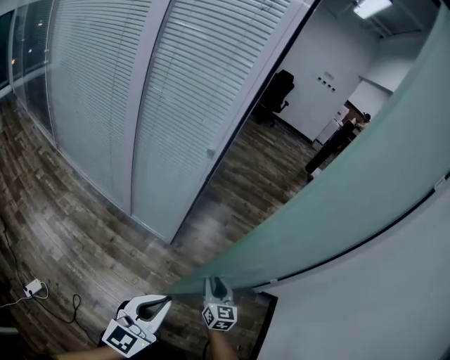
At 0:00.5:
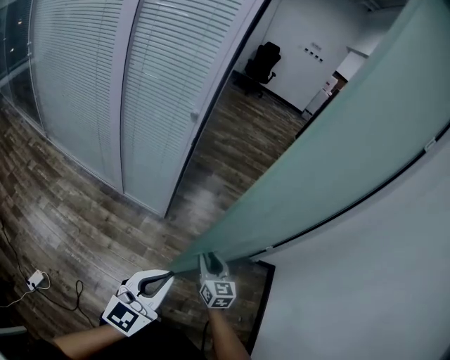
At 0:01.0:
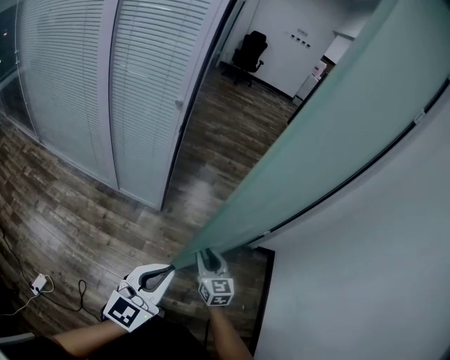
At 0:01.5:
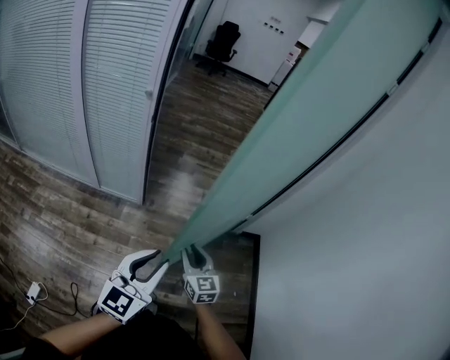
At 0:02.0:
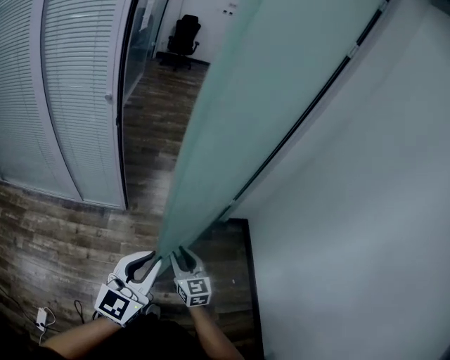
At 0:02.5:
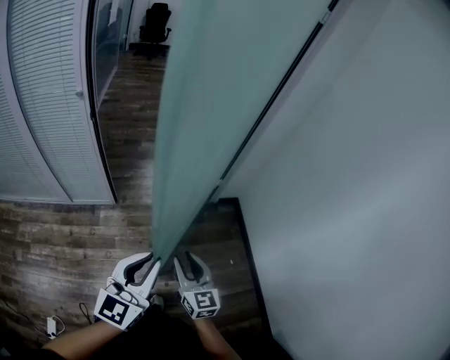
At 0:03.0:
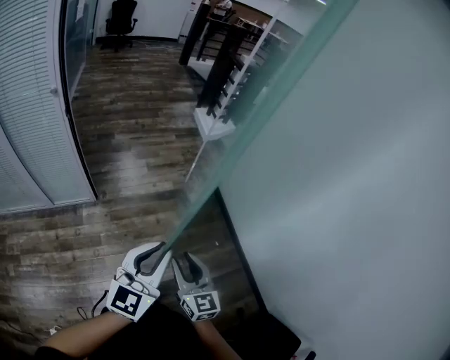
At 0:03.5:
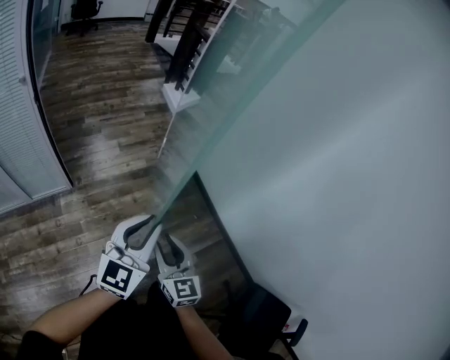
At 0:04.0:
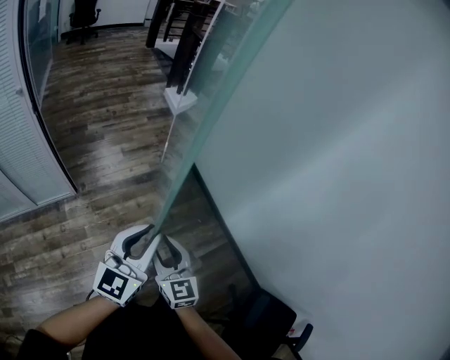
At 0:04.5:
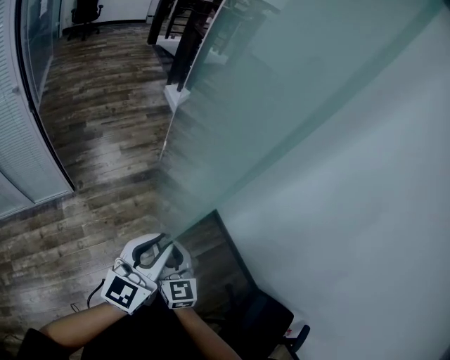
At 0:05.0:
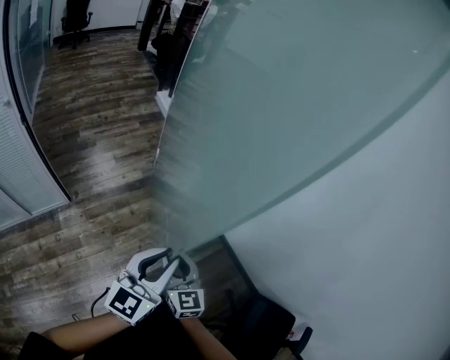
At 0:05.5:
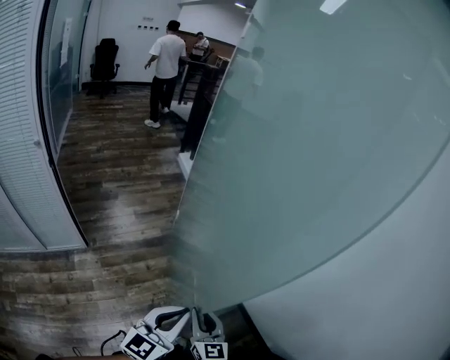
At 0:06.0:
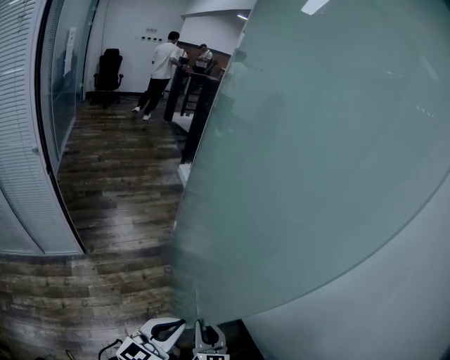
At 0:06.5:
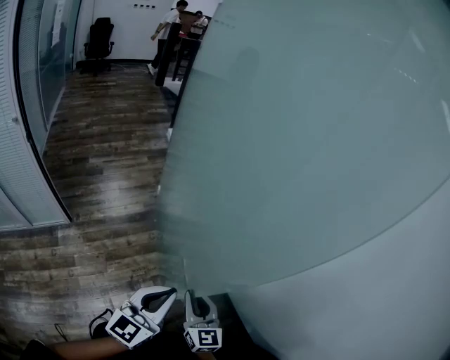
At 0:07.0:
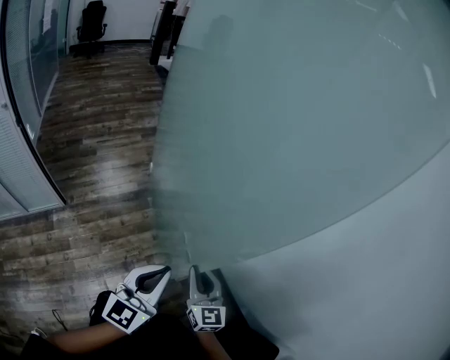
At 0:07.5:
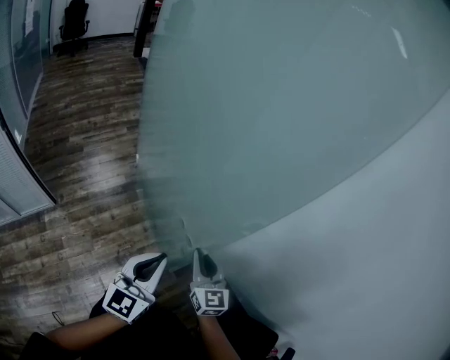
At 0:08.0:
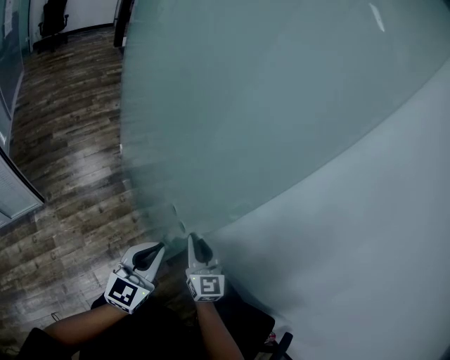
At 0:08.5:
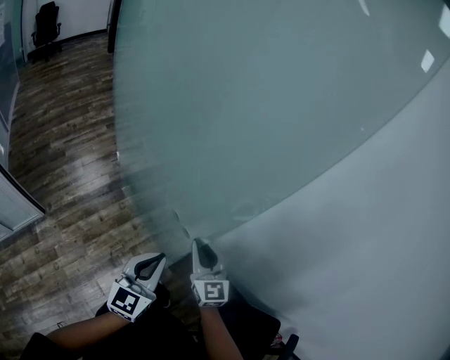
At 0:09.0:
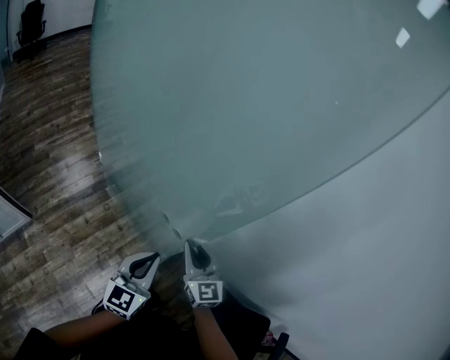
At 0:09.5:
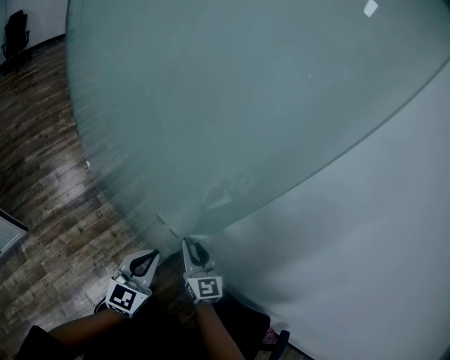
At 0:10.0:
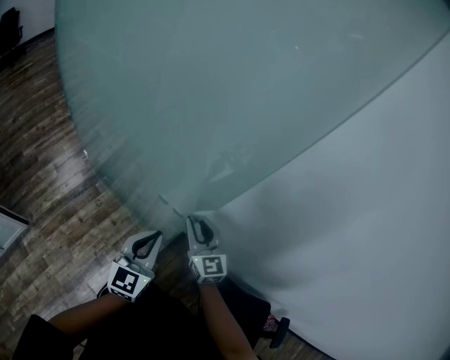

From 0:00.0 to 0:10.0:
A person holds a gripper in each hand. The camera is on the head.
From 0:00.0 to 0:02.0: The left gripper moves to the right, about 15 cm, and turns by about 20 degrees, while the right gripper travels backward and to the right by roughly 15 cm.
From 0:02.0 to 0:04.0: The right gripper ends up approximately 20 cm from where it was, and rotates roughly 30 degrees. Meanwhile the left gripper moves about 15 cm, and rotates approximately 30 degrees.
From 0:04.0 to 0:06.0: Both grippers move to the right, approximately 15 cm. The right gripper closes up.
From 0:06.0 to 0:08.0: Both grippers move to the right and forward, roughly 15 cm.
From 0:08.0 to 0:10.0: The two grippers go approximately 15 cm forward and to the right.

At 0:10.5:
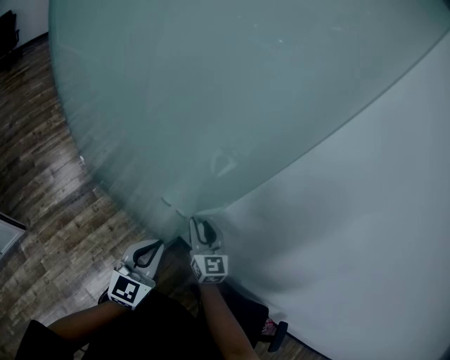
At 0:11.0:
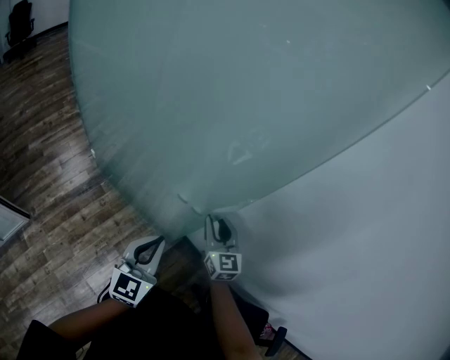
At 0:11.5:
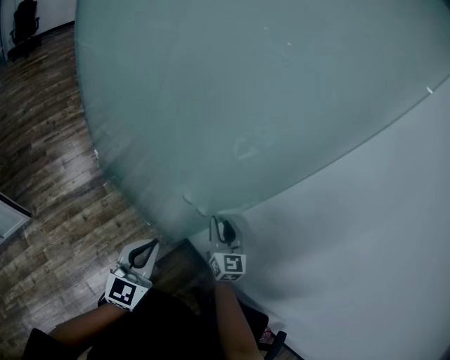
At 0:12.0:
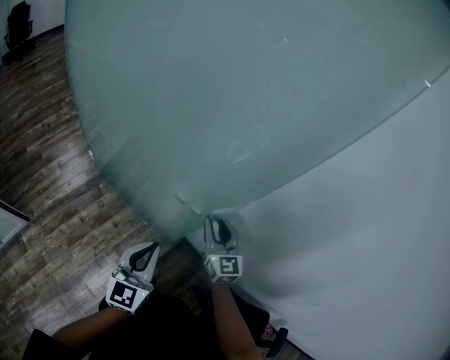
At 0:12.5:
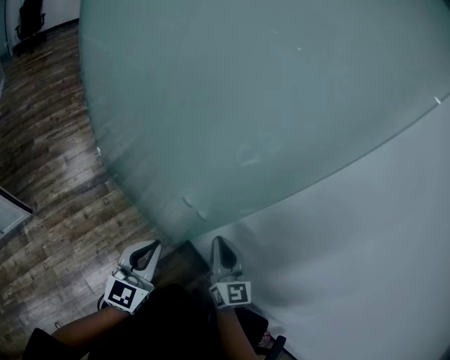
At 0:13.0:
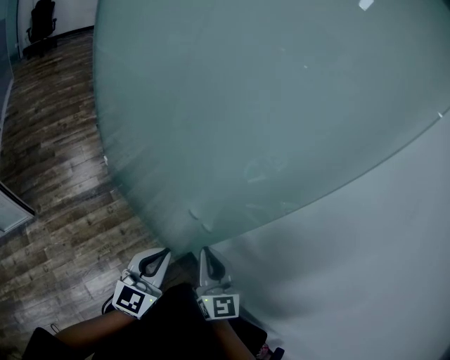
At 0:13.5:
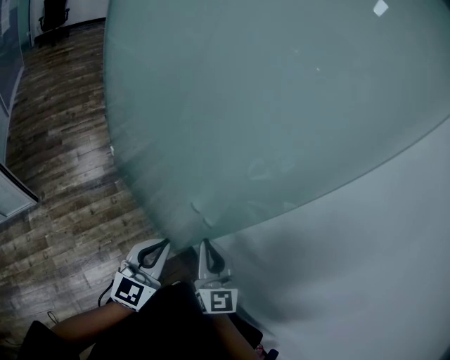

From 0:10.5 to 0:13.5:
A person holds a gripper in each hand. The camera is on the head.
From 0:10.5 to 0:12.0: The grippers make only small movements.
From 0:12.0 to 0:13.5: The right gripper goes about 15 cm upward, to the left and backward, and closes up.

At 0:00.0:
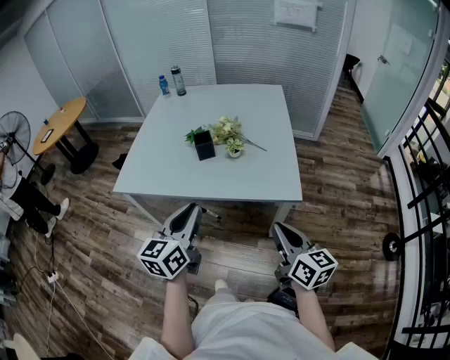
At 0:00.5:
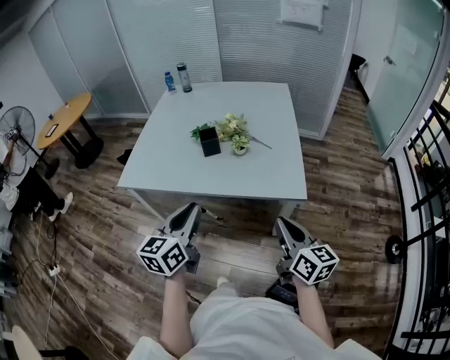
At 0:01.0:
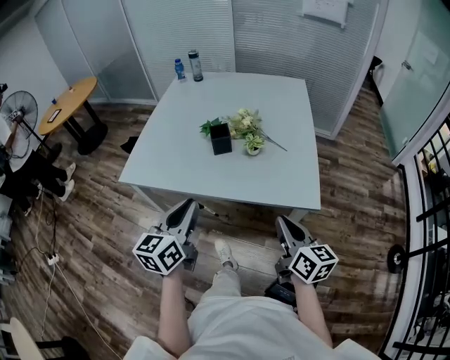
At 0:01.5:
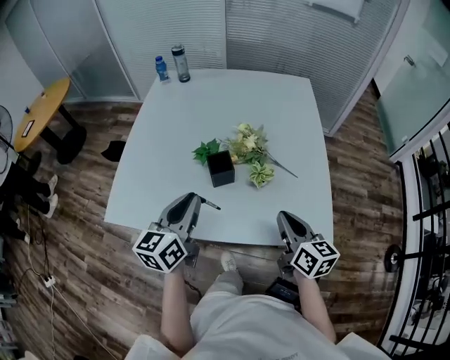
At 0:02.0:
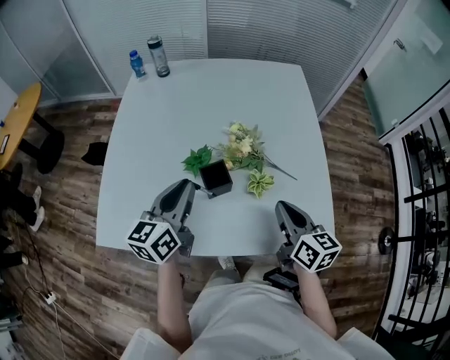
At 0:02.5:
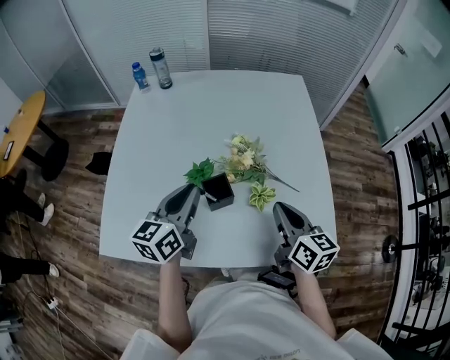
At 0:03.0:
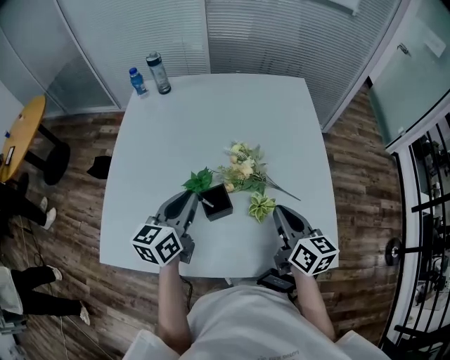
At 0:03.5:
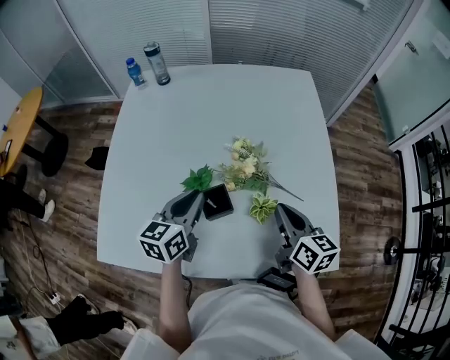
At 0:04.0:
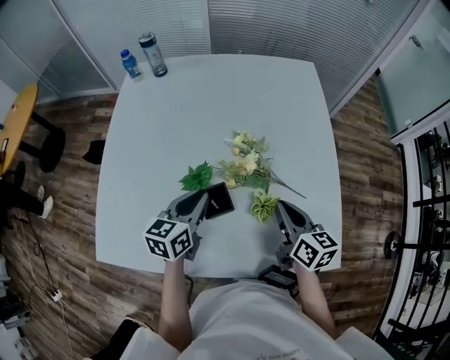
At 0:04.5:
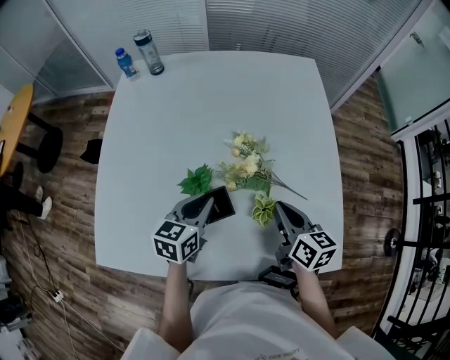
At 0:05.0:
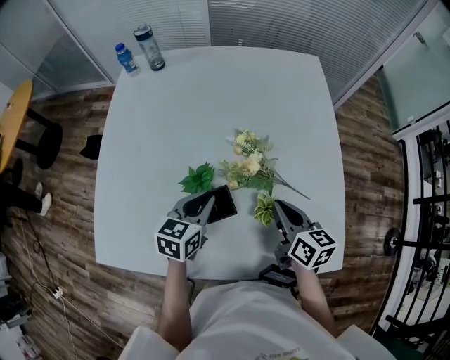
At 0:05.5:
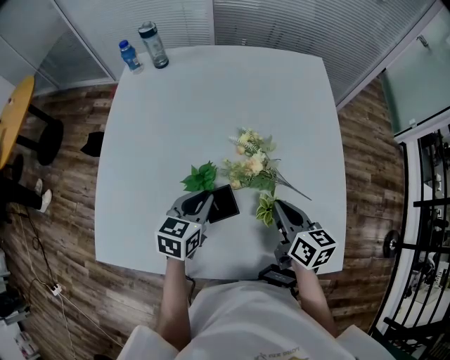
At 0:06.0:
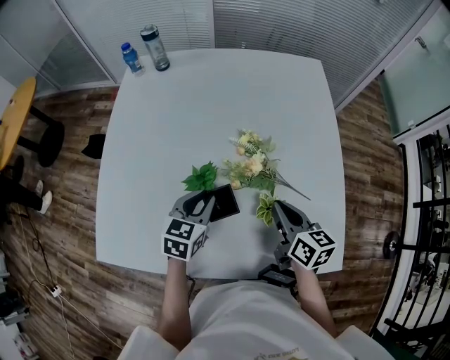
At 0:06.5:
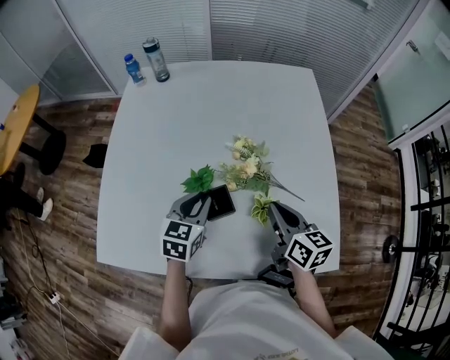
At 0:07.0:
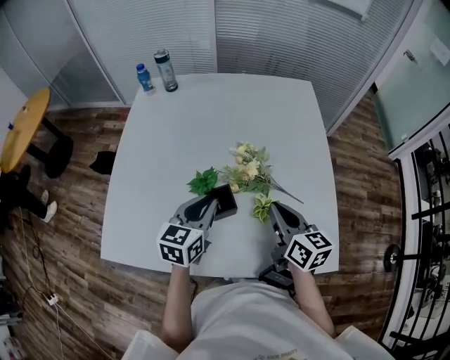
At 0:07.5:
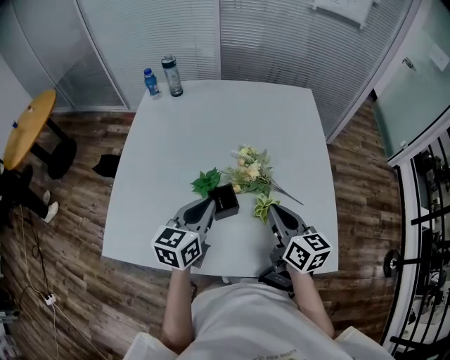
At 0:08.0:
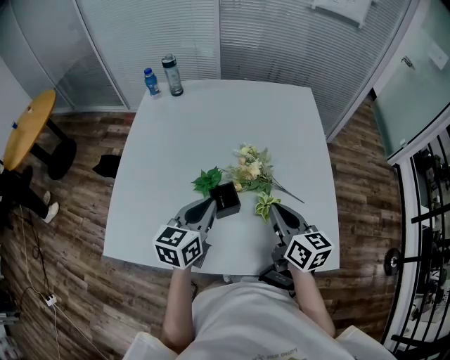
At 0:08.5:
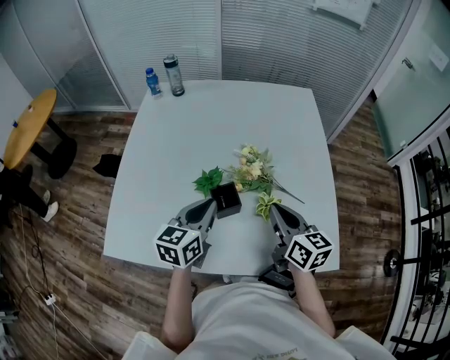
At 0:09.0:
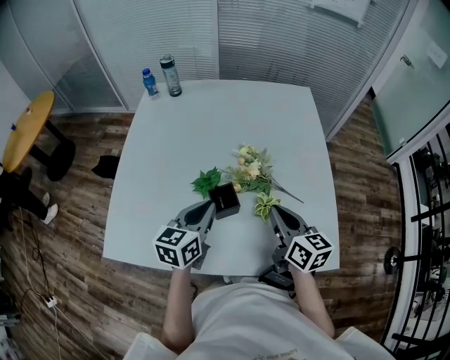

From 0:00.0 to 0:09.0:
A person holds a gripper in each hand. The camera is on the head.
From 0:00.0 to 0:02.0: The pair of grippers is taken forward, some 40 cm.
From 0:02.0 to 0:04.5: The left gripper travels downward and forward by approximately 15 cm, and turns by some 20 degrees; the right gripper moves forward and downward, roughly 15 cm.
From 0:04.5 to 0:07.0: The two grippers go about 5 cm upward.
From 0:07.0 to 0:09.0: The grippers move only a little.

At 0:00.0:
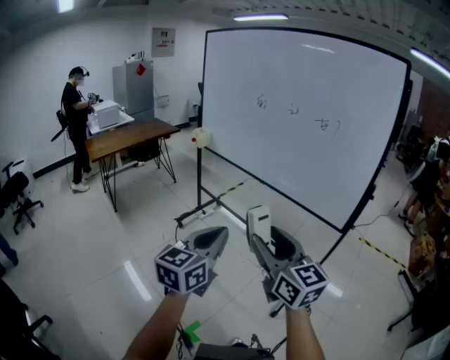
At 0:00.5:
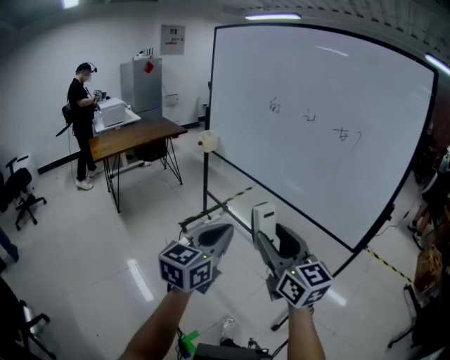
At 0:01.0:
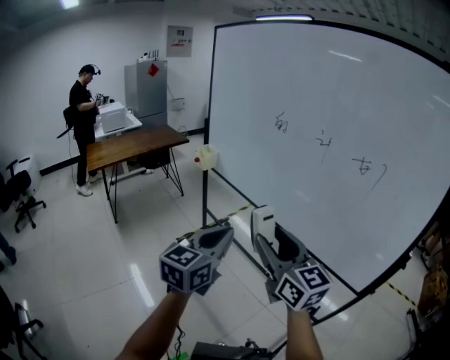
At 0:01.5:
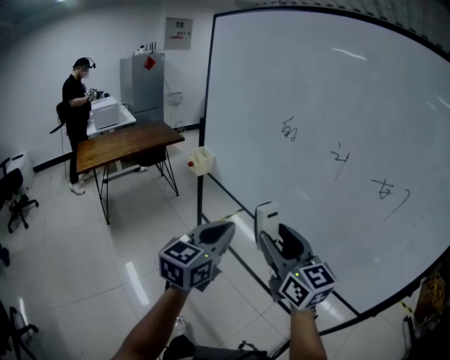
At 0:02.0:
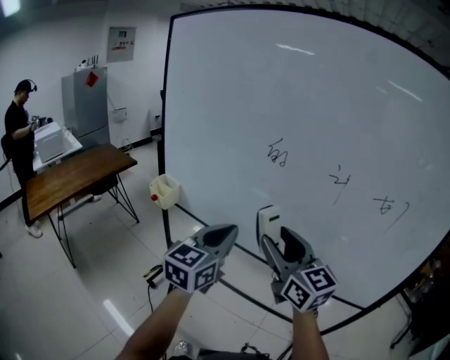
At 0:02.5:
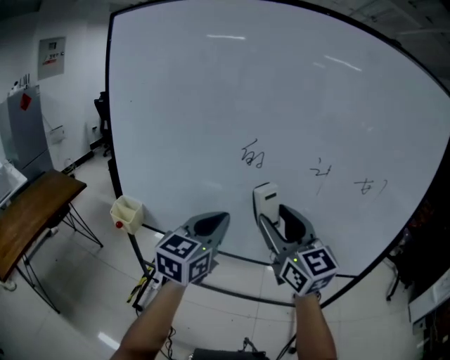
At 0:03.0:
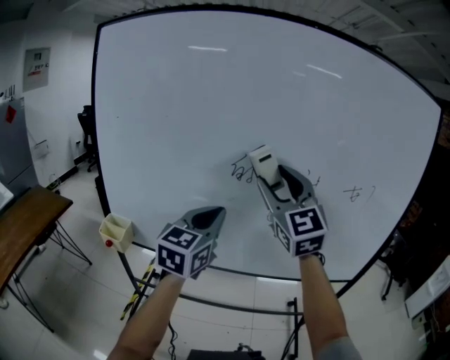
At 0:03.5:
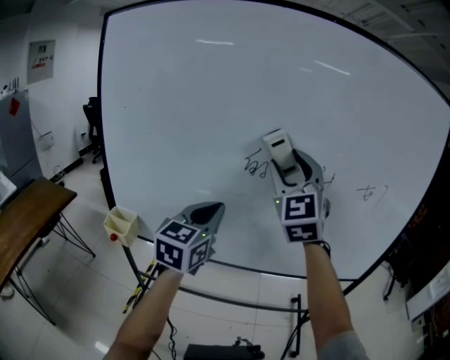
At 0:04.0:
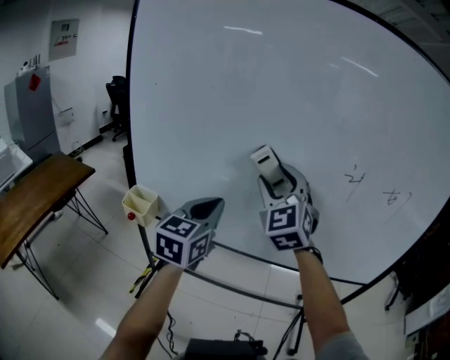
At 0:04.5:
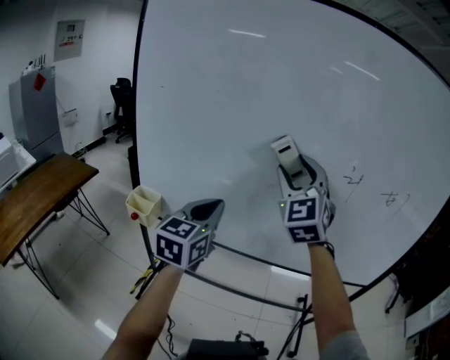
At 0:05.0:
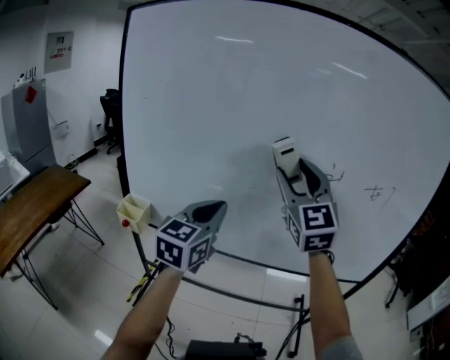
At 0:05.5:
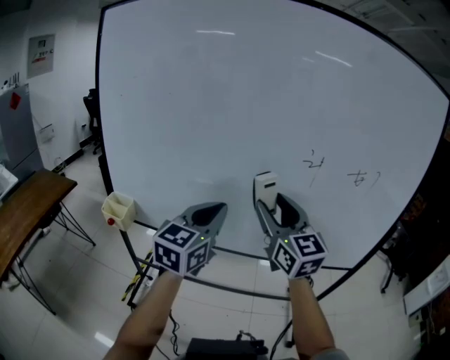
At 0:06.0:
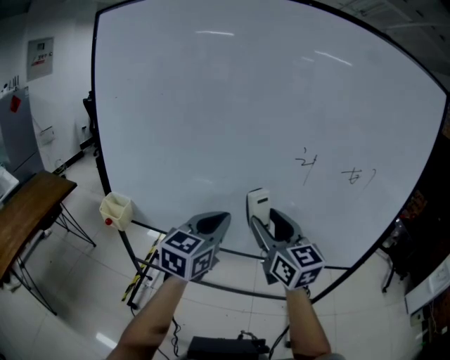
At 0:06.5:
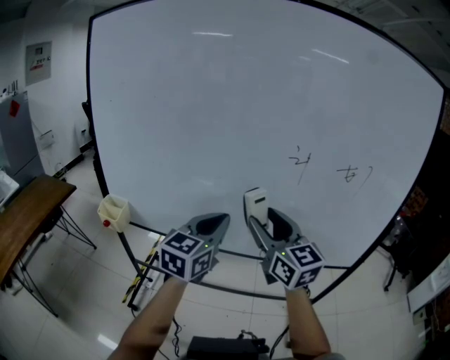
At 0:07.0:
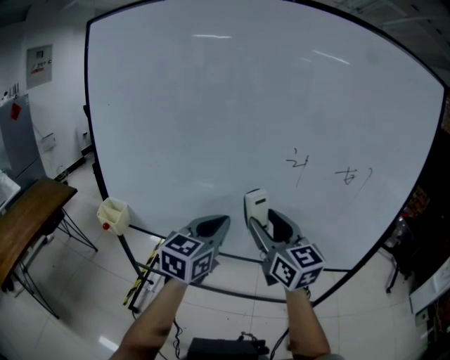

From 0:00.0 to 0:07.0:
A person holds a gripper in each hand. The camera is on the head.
From 0:00.0 to 0:02.0: The pair of grippers is taken forward, roughly 50 cm.
From 0:02.0 to 0:03.5: The left gripper ends up some 15 cm from where it was, while the right gripper goes roughly 15 cm upward, and turns by some 60 degrees.
From 0:03.5 to 0:05.0: The right gripper moves about 10 cm downward and comes back.
From 0:05.0 to 0:07.0: The right gripper shifts about 15 cm downward and to the right, and turns by some 30 degrees, while the left gripper heads to the right, covering some 10 cm.
